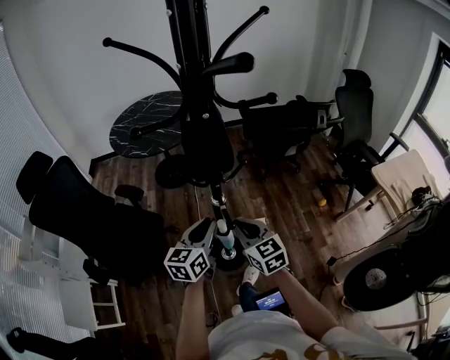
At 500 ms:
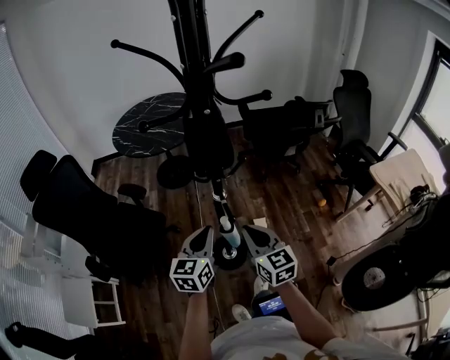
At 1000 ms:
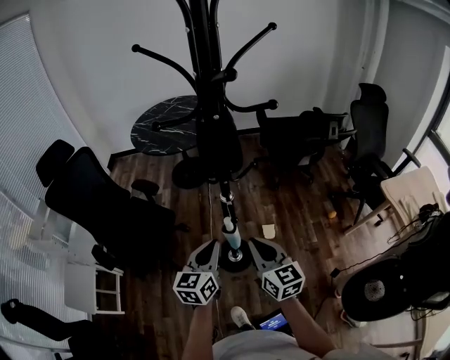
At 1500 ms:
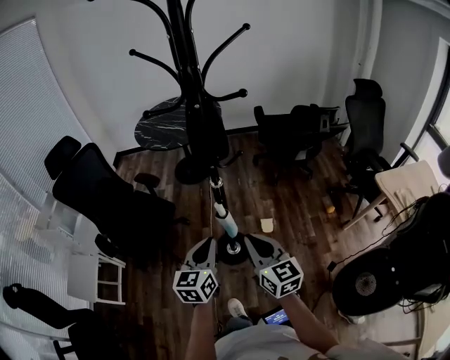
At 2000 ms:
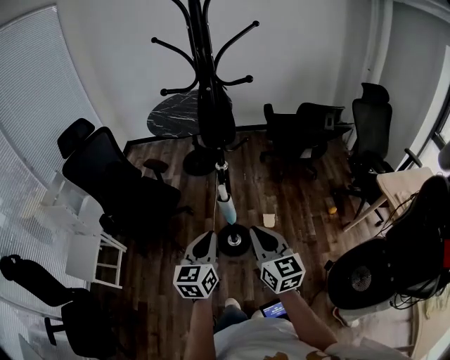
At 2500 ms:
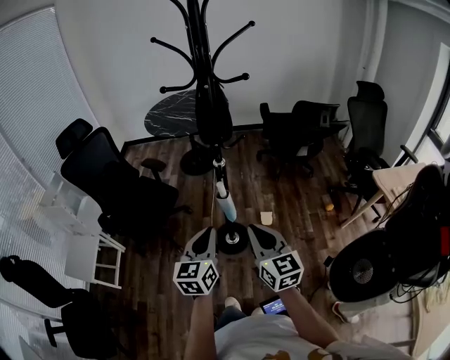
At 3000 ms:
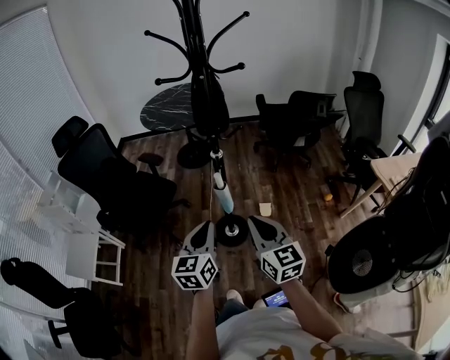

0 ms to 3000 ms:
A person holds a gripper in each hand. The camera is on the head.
0 ms to 1500 ms: The left gripper heads backward, covering about 20 cm; the right gripper travels backward and upward by roughly 20 cm.
1500 ms to 3000 ms: Both grippers move backward, about 10 cm.

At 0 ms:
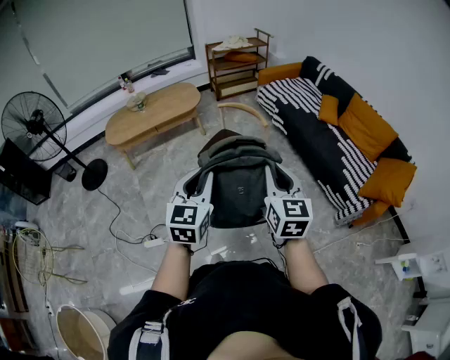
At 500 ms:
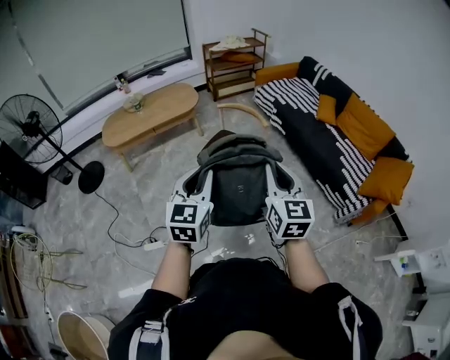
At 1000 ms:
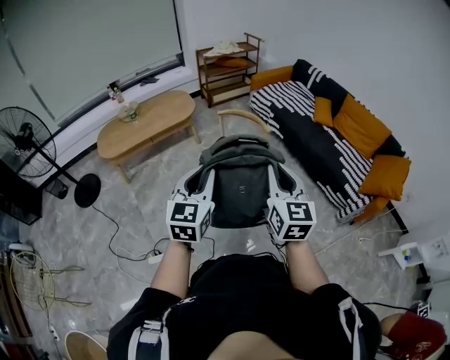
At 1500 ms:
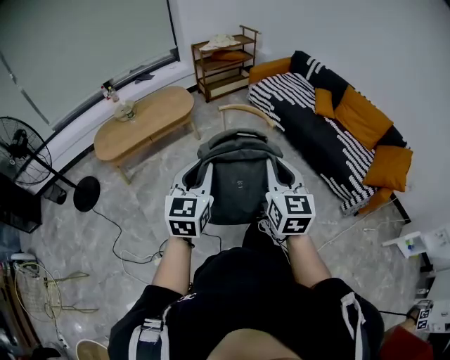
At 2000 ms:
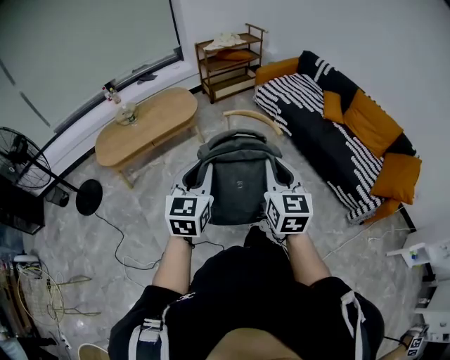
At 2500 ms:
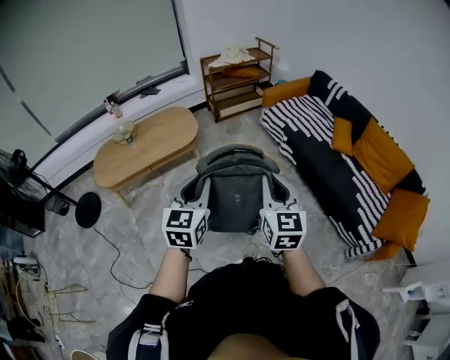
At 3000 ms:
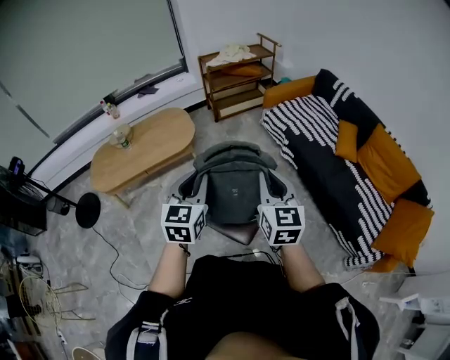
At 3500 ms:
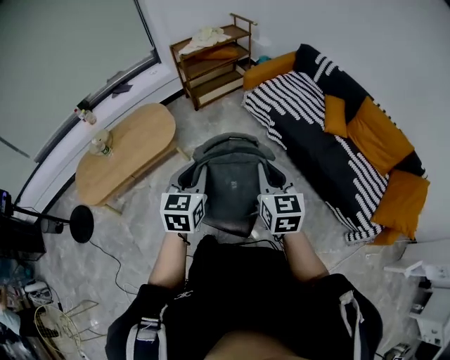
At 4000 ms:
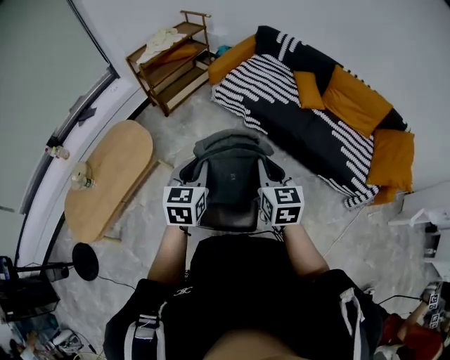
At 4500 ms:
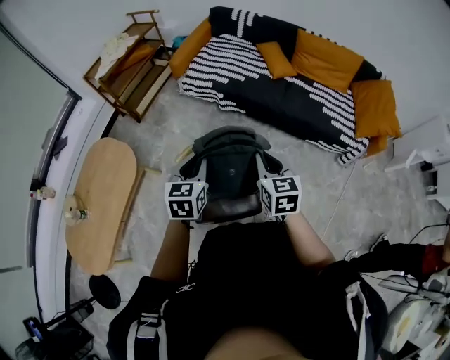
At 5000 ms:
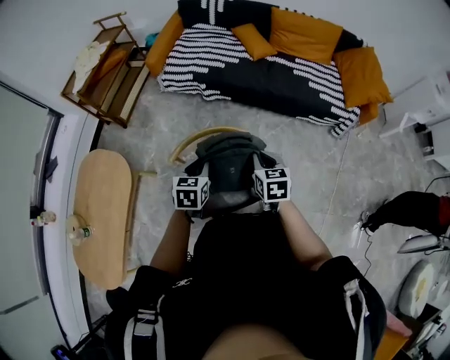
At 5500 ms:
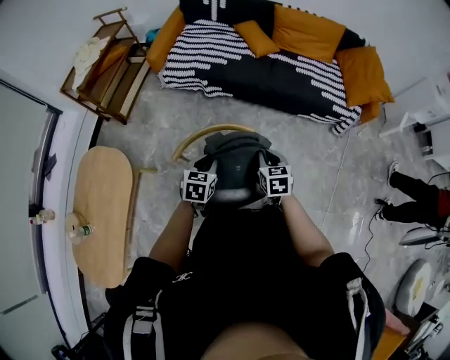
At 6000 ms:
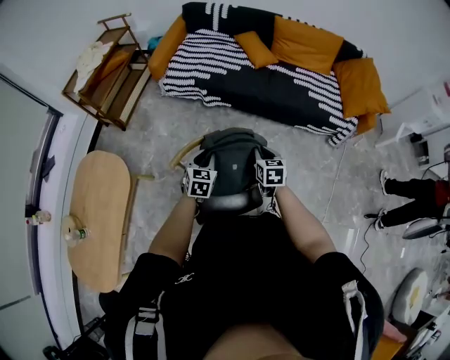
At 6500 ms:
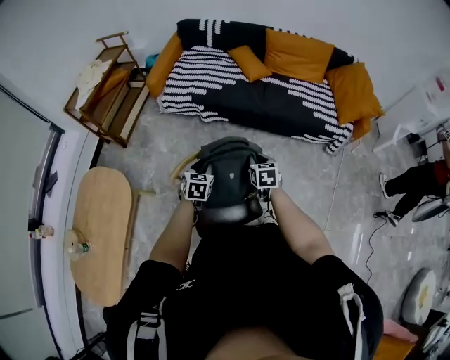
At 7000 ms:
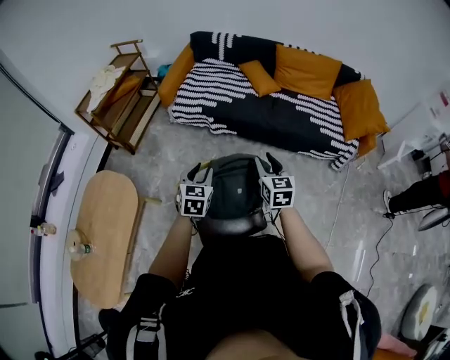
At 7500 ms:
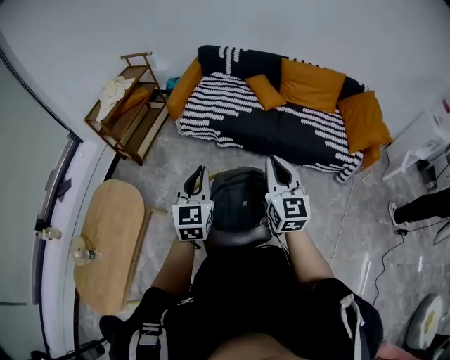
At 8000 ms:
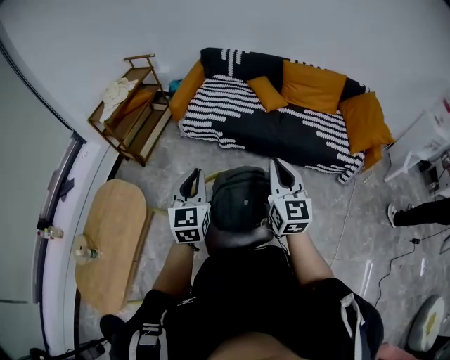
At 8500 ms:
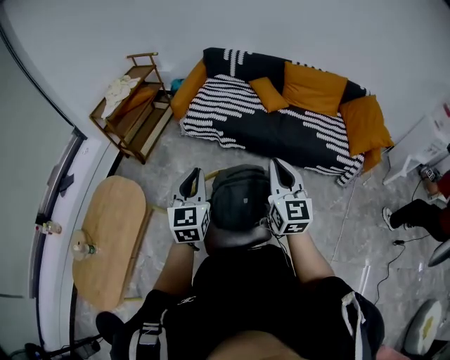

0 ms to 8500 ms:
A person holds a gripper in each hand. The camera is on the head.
0 ms to 2000 ms: Both grippers travel together forward and to the left, roughly 25 cm.
2000 ms to 4000 ms: Both grippers are carried forward, roughly 50 cm. The left gripper rotates some 20 degrees.
4000 ms to 6500 ms: The two grippers go some 25 cm downward. The right gripper rotates approximately 30 degrees; the left gripper changes its angle by roughly 30 degrees.
6500 ms to 8500 ms: The two grippers go roughly 30 cm upward. The right gripper tilts its fingers some 40 degrees upward. Meanwhile the left gripper points its fingers approximately 30 degrees further upward, and closes up.

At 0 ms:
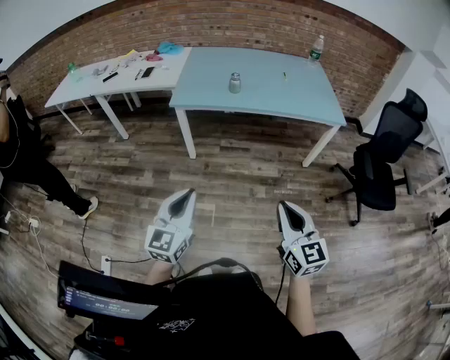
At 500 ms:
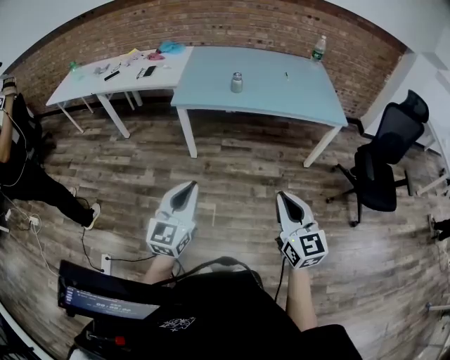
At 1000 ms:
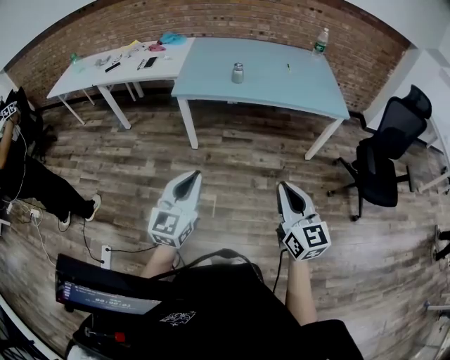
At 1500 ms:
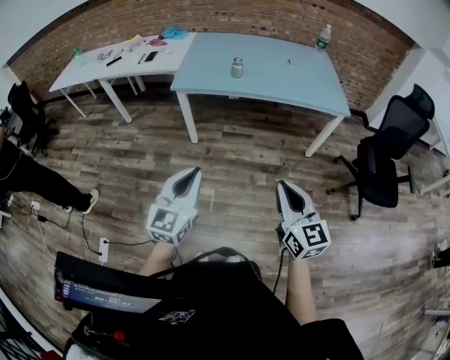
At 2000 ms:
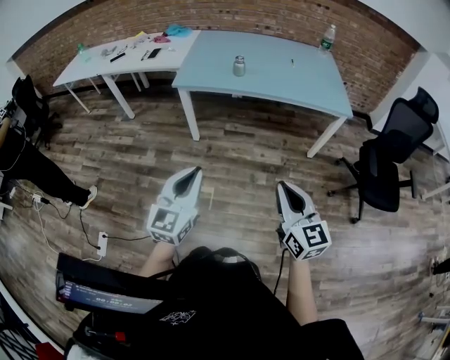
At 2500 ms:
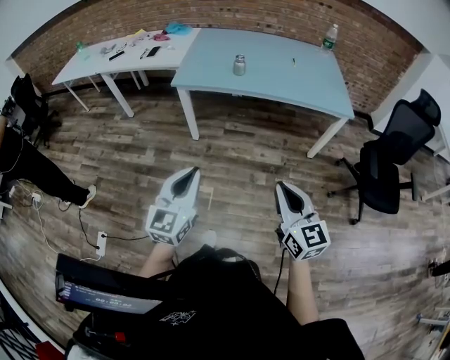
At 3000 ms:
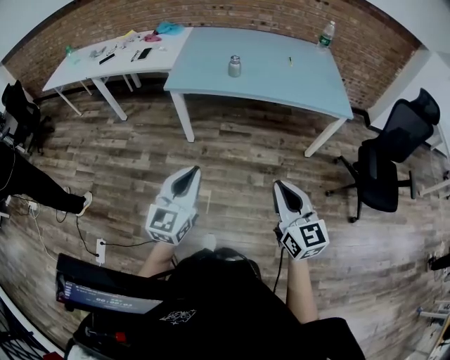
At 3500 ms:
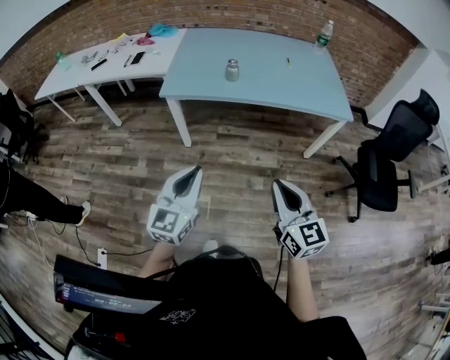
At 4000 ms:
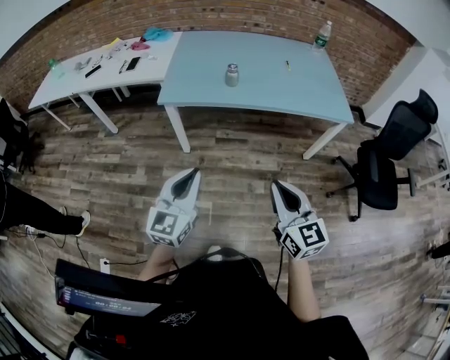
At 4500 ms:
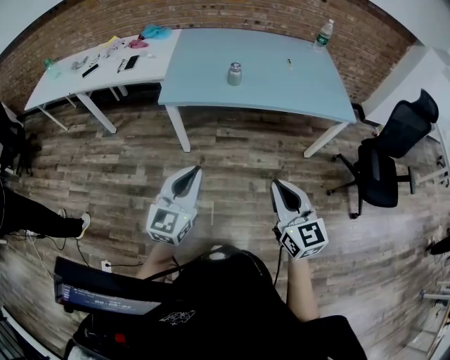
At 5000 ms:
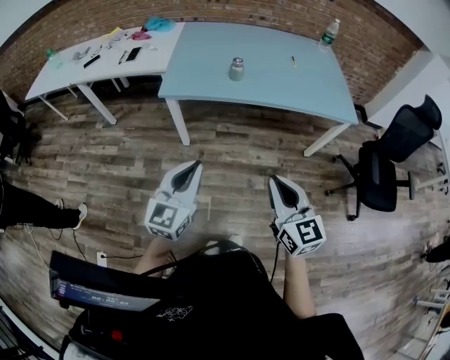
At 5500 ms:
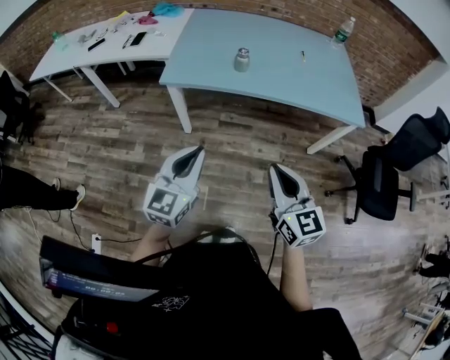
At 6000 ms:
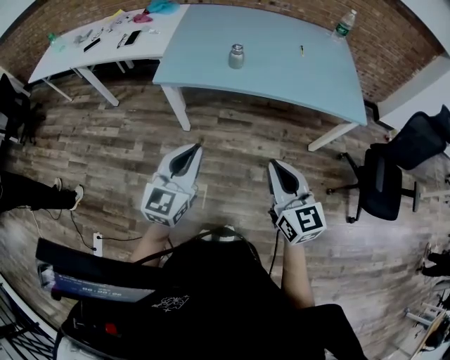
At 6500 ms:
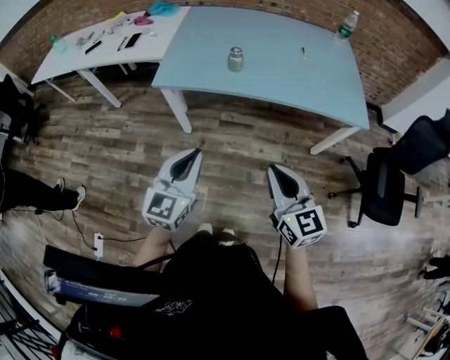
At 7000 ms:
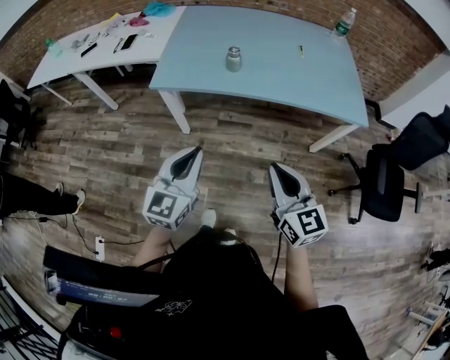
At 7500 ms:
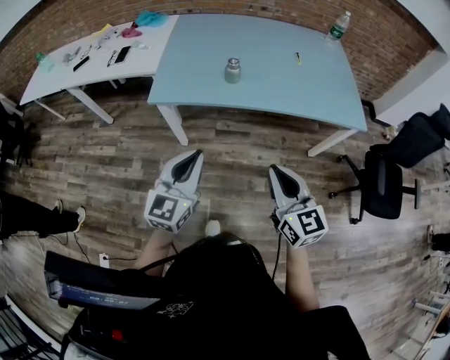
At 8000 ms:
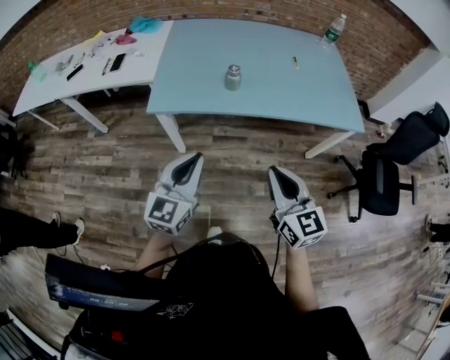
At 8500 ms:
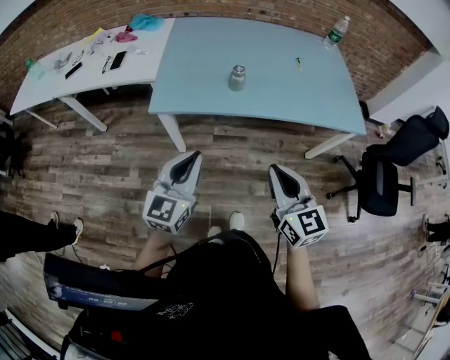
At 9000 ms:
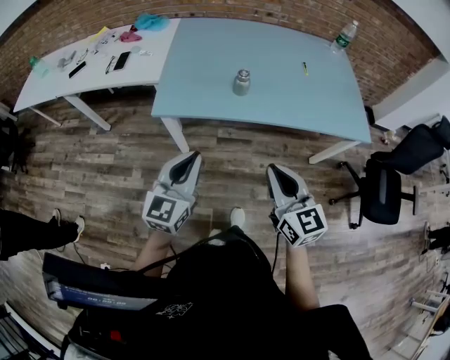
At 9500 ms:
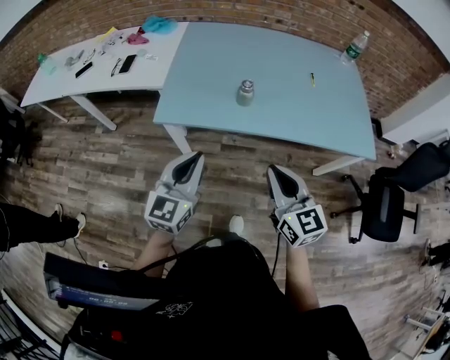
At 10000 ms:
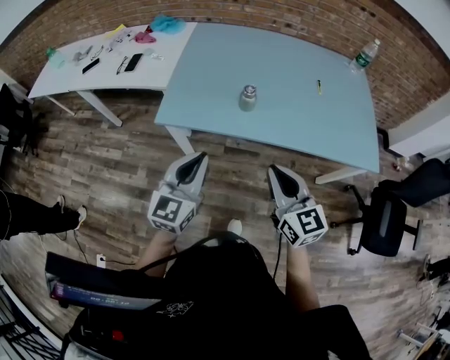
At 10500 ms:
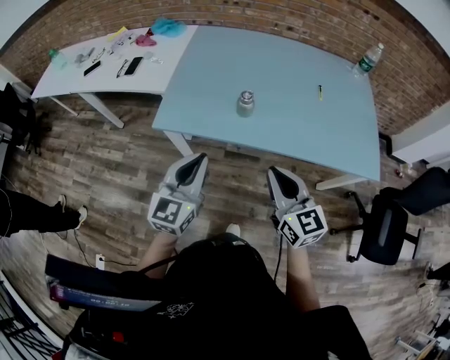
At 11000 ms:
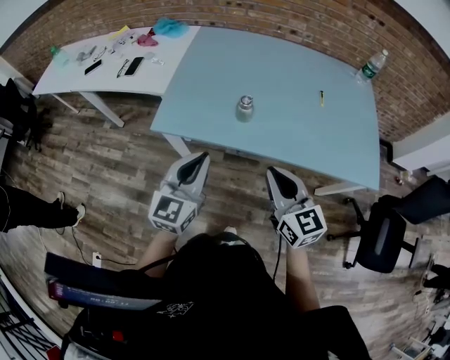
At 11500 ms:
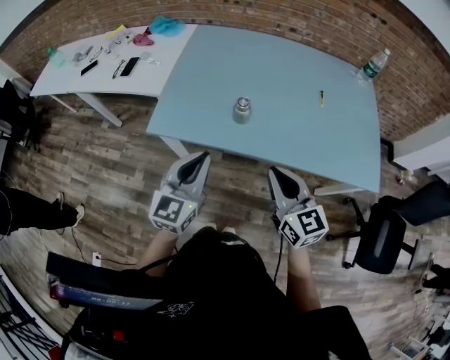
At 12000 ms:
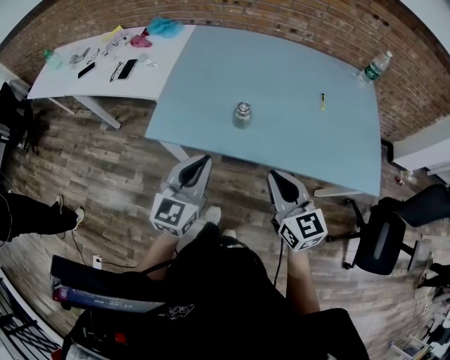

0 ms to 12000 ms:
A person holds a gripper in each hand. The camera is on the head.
0 ms to 2000 ms: The left gripper goes about 5 cm to the right.
2000 ms to 4000 ms: The left gripper goes approximately 15 cm forward. The right gripper shifts approximately 15 cm forward and to the left.
4000 ms to 6000 ms: The two grippers go some 5 cm forward.
6000 ms to 8000 ms: Both grippers travel together forward, some 10 cm.
8000 ms to 10000 ms: Both grippers travel together forward, about 10 cm.
10000 ms to 12000 ms: Both grippers travel together forward, roughly 5 cm.

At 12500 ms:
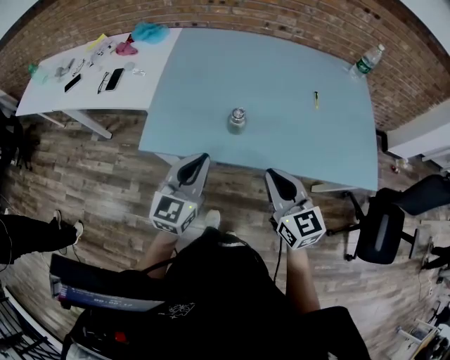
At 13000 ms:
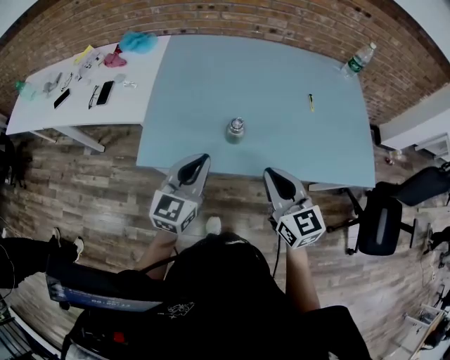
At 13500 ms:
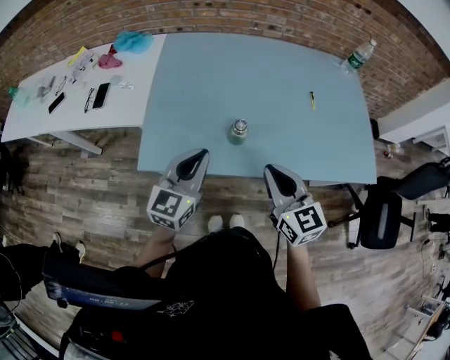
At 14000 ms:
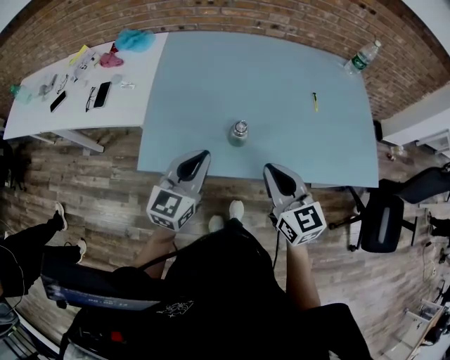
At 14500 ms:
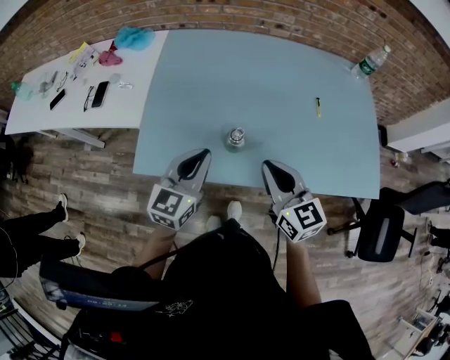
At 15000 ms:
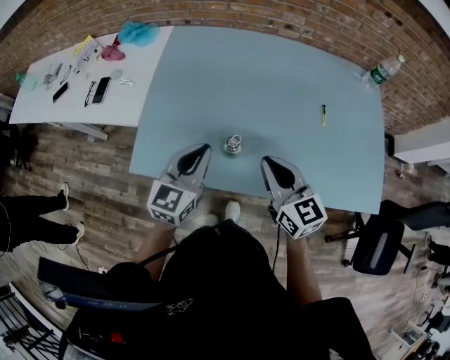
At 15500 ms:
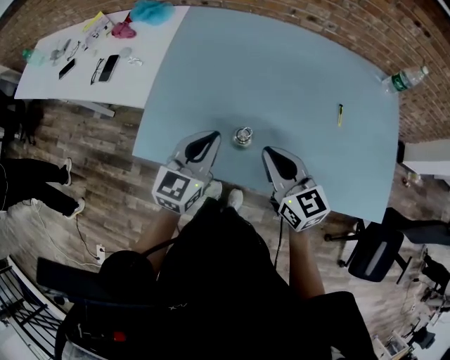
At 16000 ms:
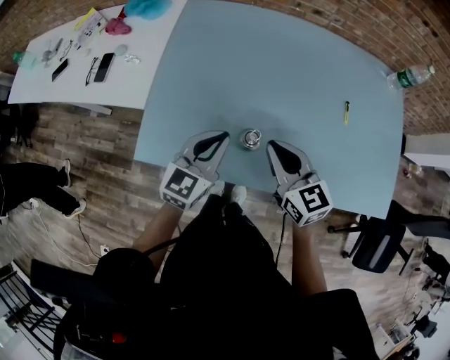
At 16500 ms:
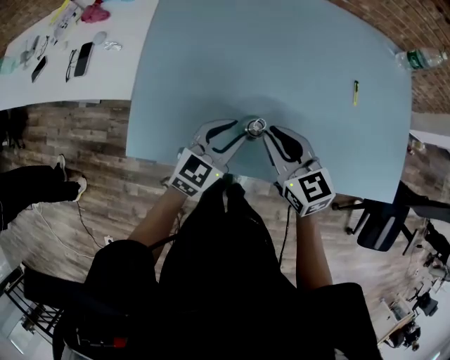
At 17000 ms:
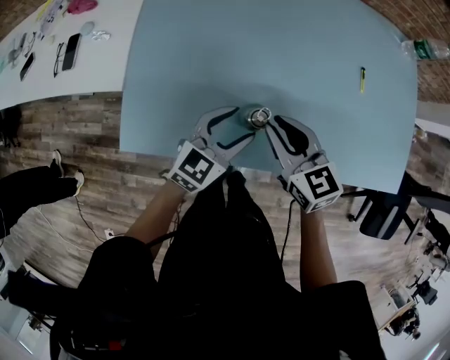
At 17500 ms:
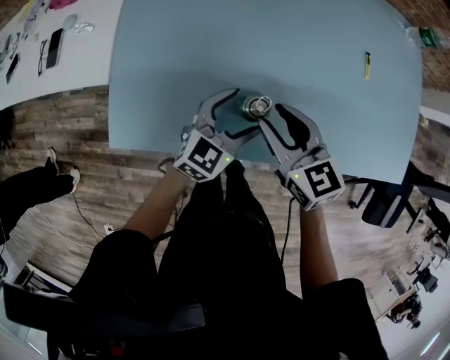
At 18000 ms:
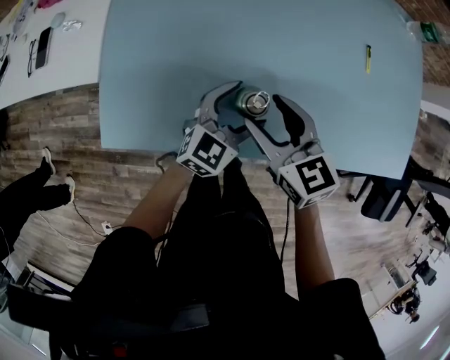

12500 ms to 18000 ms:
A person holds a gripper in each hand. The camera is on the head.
12500 ms to 14500 ms: Both grippers travel together forward, some 10 cm.
14500 ms to 16000 ms: The two grippers go about 5 cm forward.
16000 ms to 18000 ms: The left gripper travels downward and to the right by some 15 cm, and opens its fingers. The right gripper shifts about 10 cm downward, and opens its fingers.
